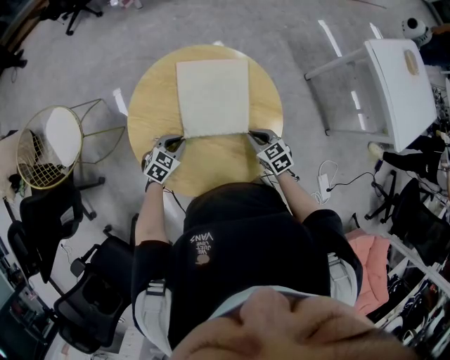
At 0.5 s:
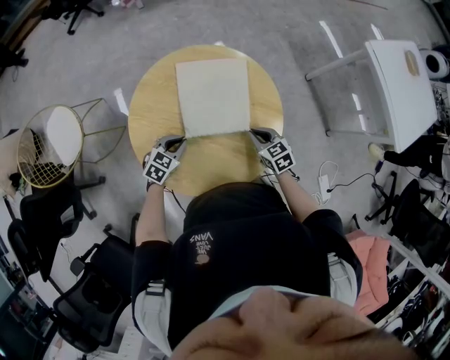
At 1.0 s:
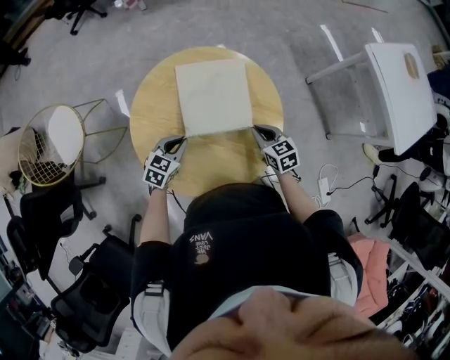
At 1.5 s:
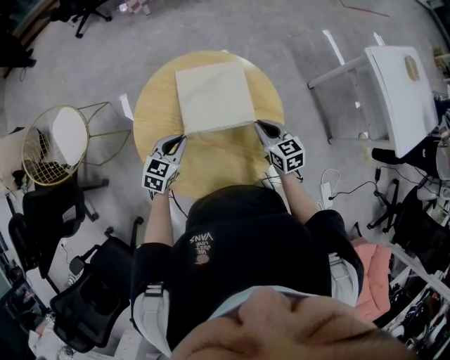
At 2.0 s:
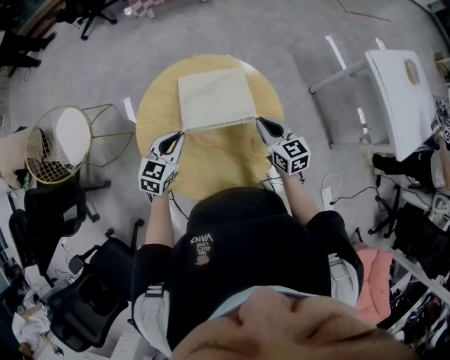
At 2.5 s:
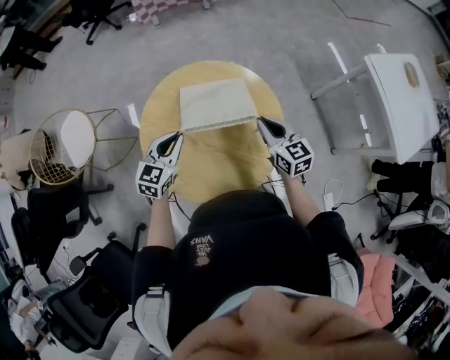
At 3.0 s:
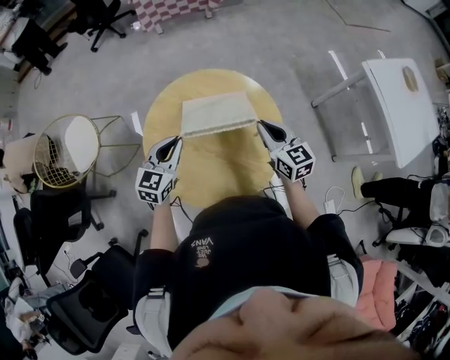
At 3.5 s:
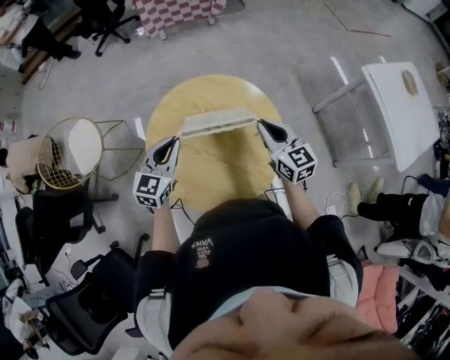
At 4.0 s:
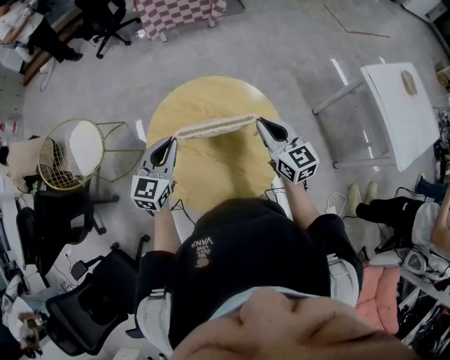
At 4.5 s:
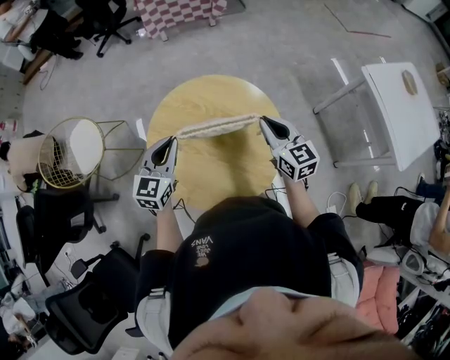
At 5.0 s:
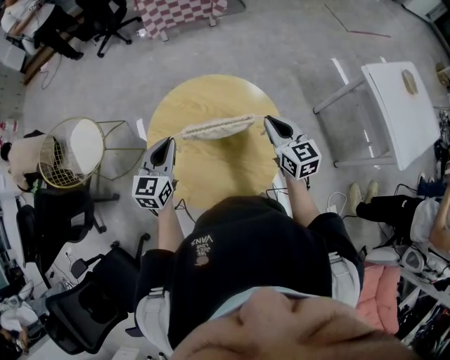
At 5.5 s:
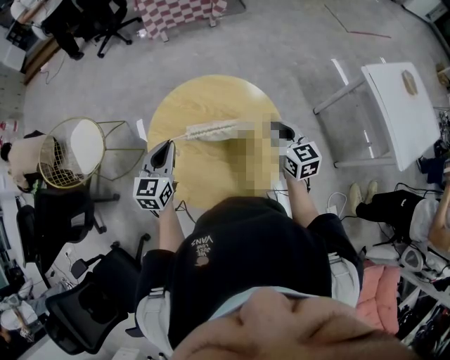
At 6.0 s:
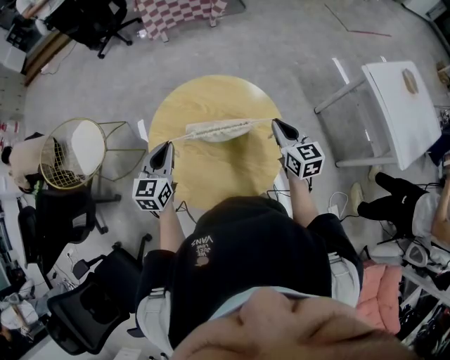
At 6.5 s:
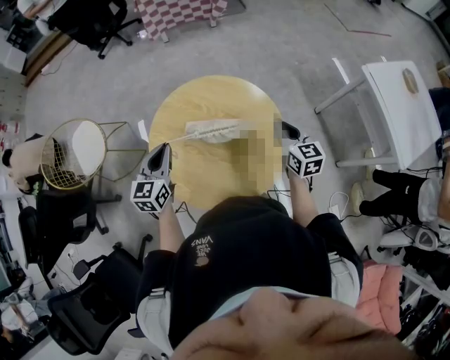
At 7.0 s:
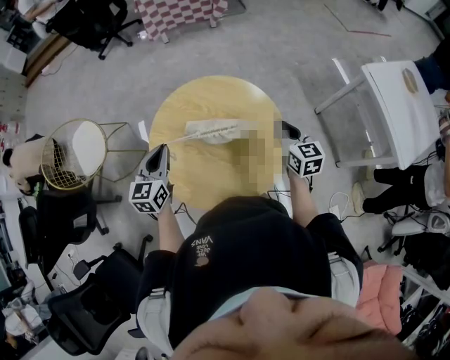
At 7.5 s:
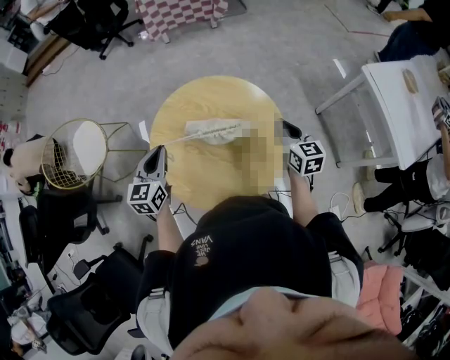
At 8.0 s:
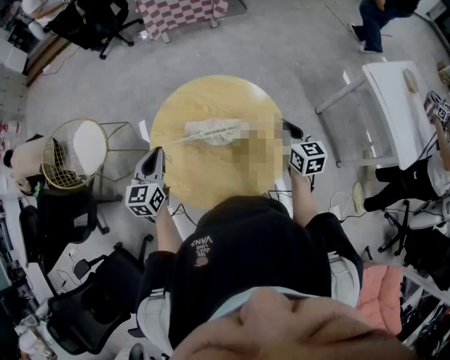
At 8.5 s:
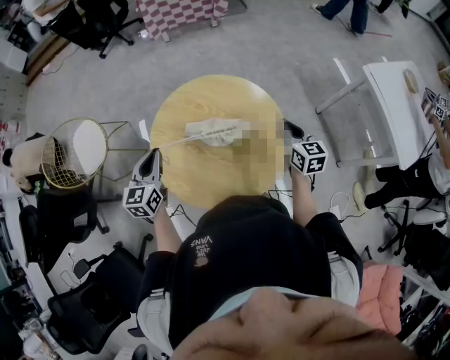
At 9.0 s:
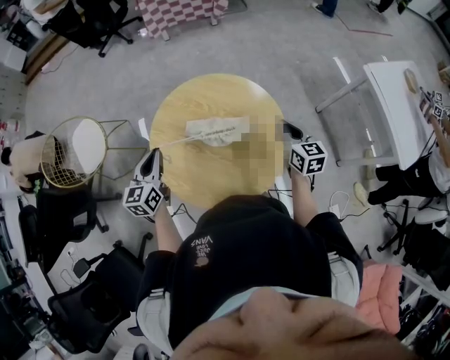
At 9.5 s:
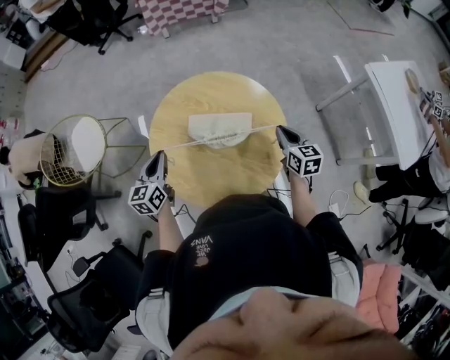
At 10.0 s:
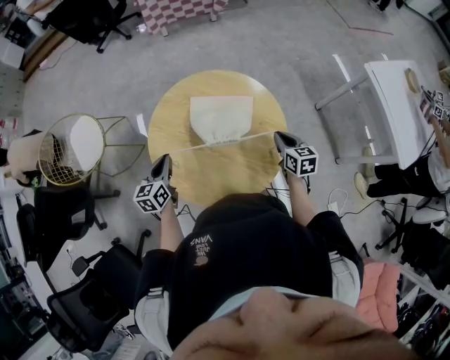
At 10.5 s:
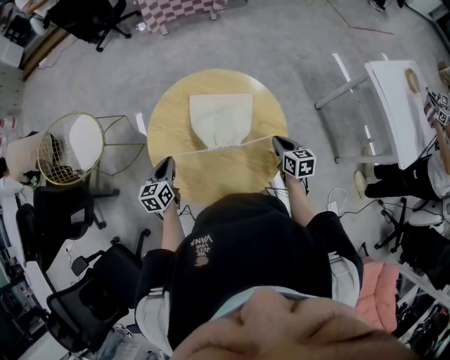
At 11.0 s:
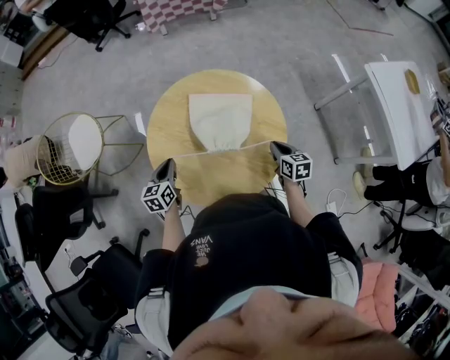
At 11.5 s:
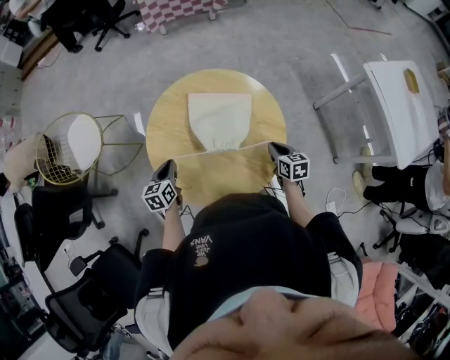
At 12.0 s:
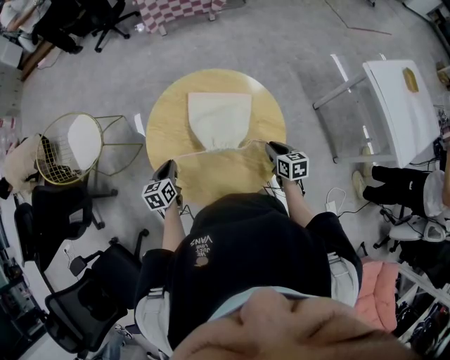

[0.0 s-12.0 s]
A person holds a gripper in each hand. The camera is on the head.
0.0 to 2.0 s: Both grippers move upward, some 15 cm. The right gripper rotates roughly 20 degrees, while the left gripper turns by some 30 degrees.
2.0 to 4.0 s: Both grippers travel together upward, approximately 15 cm.
4.0 to 6.0 s: The right gripper moves to the right, about 5 cm.
6.0 to 8.0 s: The grippers move only a little.
8.0 to 10.0 s: The two grippers go roughly 10 cm downward.
10.0 to 12.0 s: The grippers both shift downward by about 5 cm.

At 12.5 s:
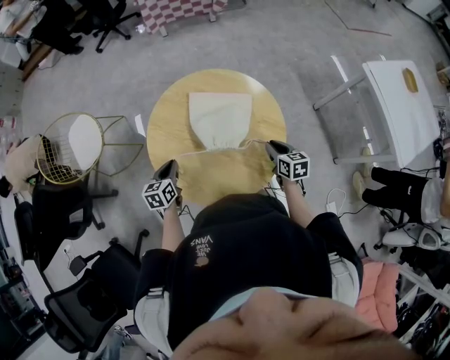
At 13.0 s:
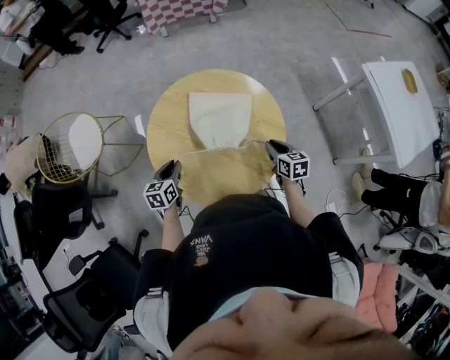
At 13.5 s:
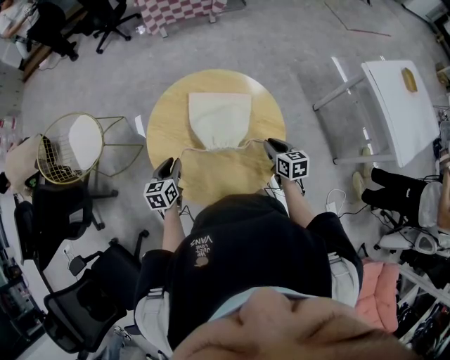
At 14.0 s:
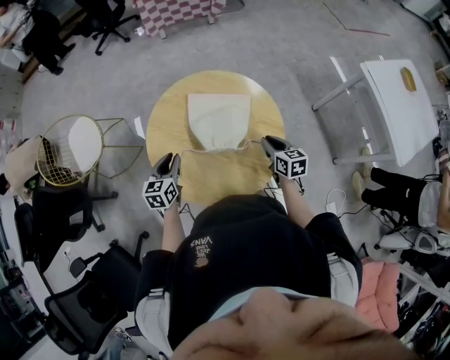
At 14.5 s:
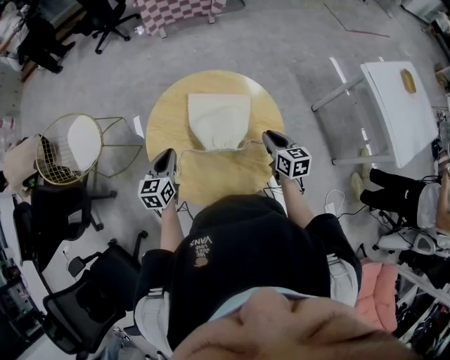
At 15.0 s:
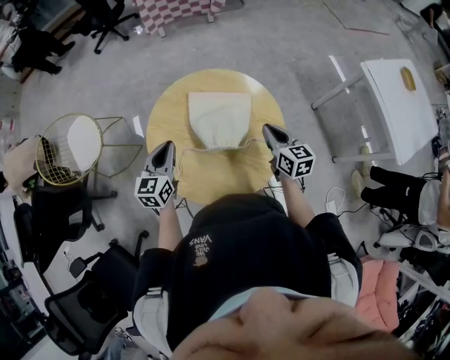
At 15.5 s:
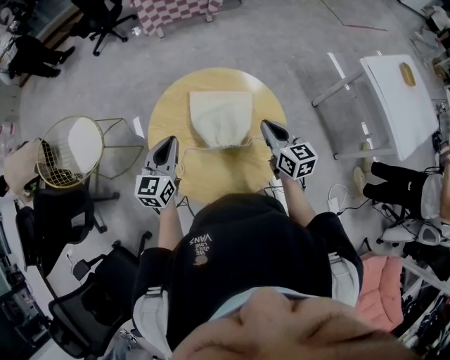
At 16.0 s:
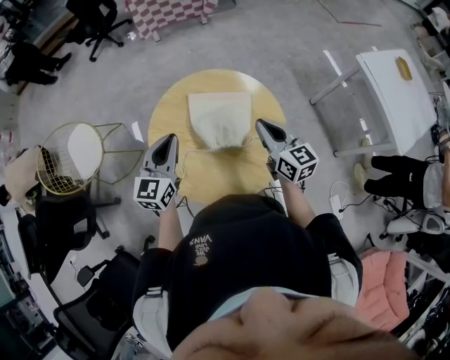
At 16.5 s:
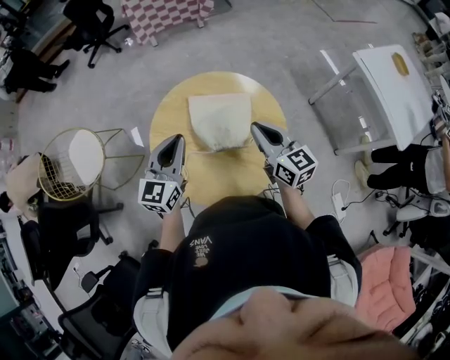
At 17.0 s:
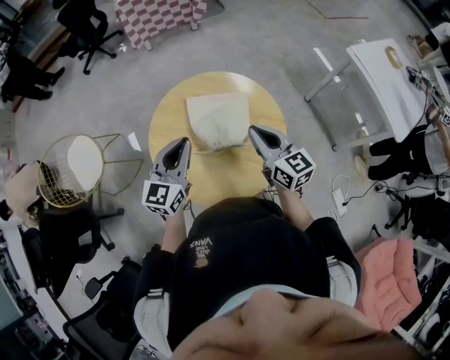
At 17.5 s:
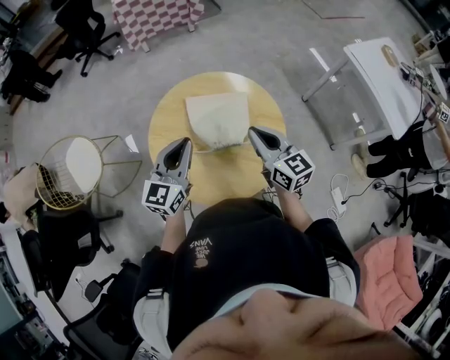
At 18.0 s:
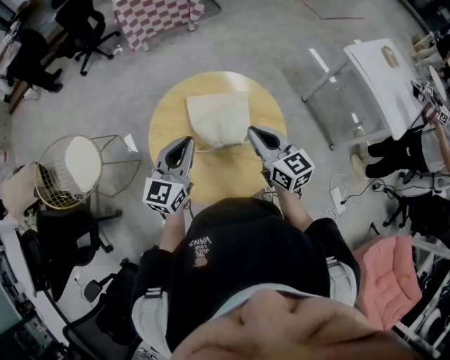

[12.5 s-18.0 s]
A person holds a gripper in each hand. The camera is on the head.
12.5 to 14.5 s: The two grippers go roughly 5 cm upward.
14.5 to 16.0 s: The left gripper moves upward, some 10 cm, and swivels about 20 degrees; the right gripper moves upward and to the left, about 15 cm.
16.0 to 18.0 s: The right gripper changes place by some 5 cm.

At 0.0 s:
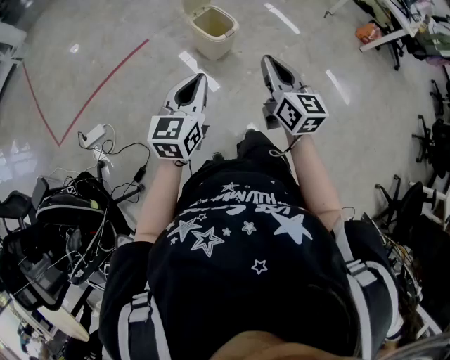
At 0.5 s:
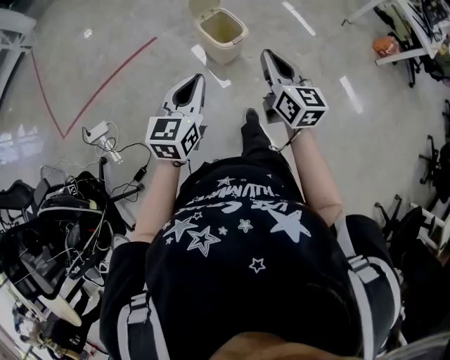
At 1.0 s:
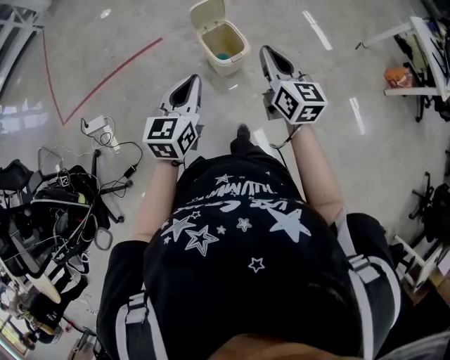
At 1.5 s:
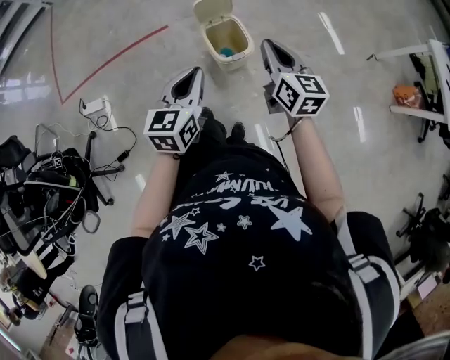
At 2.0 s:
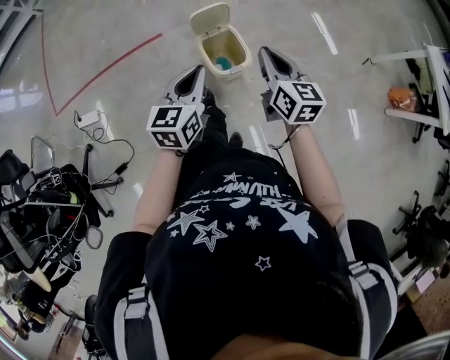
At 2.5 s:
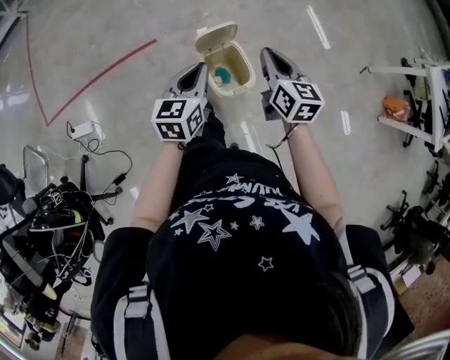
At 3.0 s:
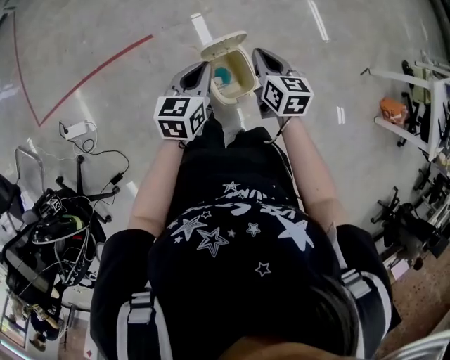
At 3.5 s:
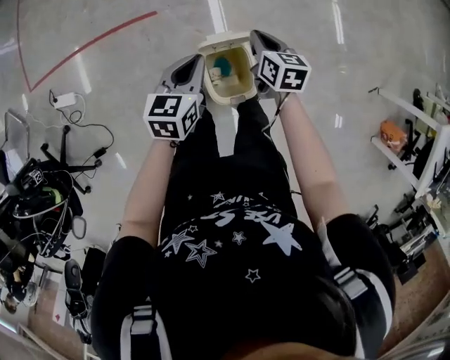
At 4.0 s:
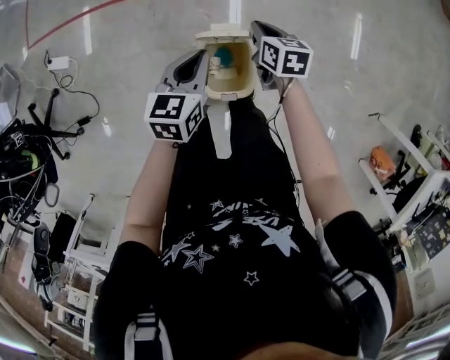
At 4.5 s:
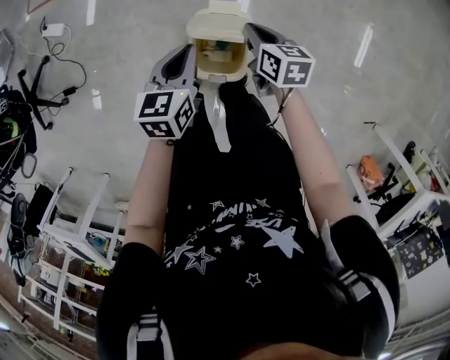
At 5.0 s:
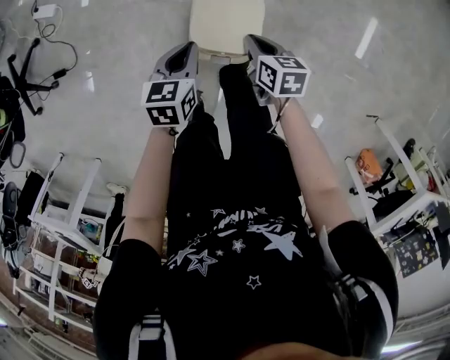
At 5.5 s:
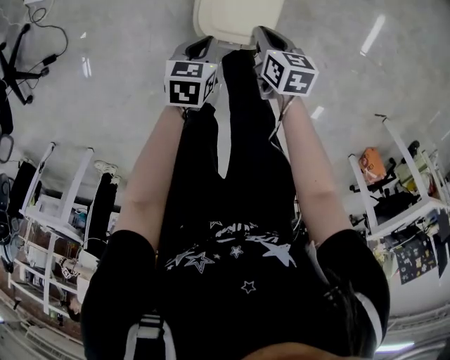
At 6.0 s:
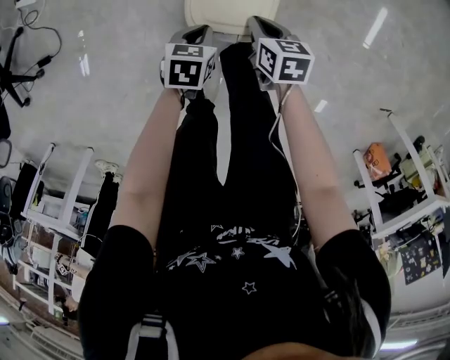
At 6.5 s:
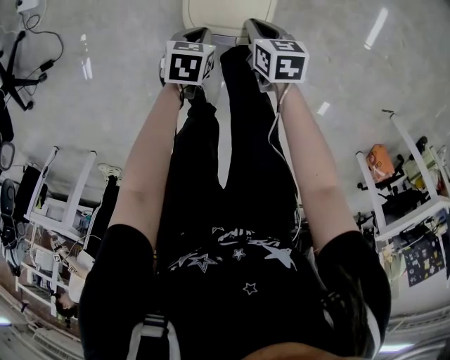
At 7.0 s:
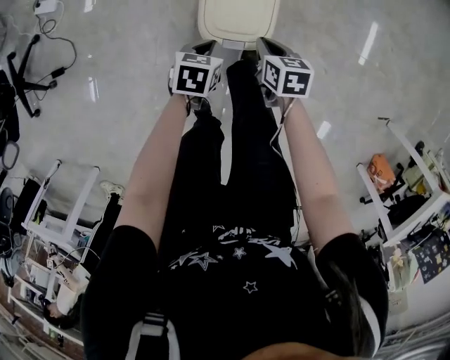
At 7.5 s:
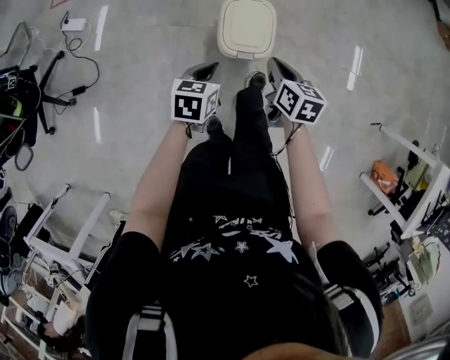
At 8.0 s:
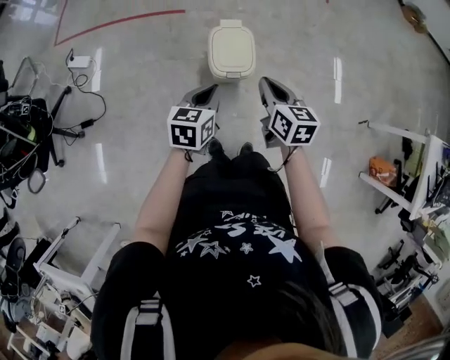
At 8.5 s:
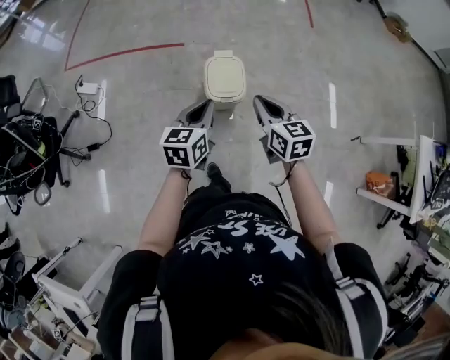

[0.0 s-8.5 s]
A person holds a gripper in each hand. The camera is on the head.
0.0 to 2.0 s: Both grippers travel together forward, about 35 cm. The right gripper turns by roughly 20 degrees; the left gripper turns by roughly 20 degrees.
2.0 to 4.0 s: The left gripper shifts by some 30 cm, and rotates roughly 30 degrees; the right gripper moves roughly 40 cm, and changes its angle by roughly 40 degrees.
4.0 to 6.5 s: The left gripper heads downward and backward, covering some 35 cm, and tilts its fingers about 30 degrees downward; the right gripper moves backward and downward, roughly 30 cm.
6.5 to 8.5 s: The grippers both shift upward by some 50 cm. The right gripper turns by roughly 30 degrees, while the left gripper angles its fingers upward, by some 40 degrees.

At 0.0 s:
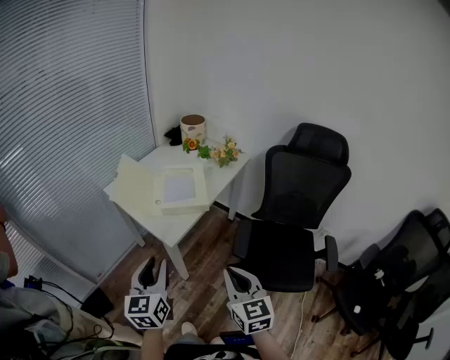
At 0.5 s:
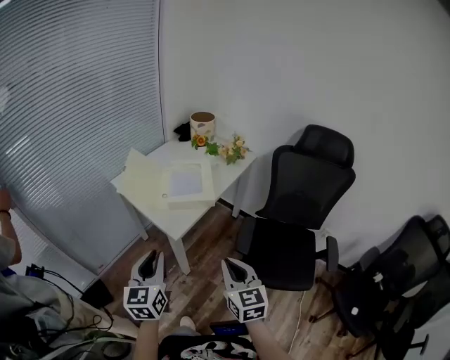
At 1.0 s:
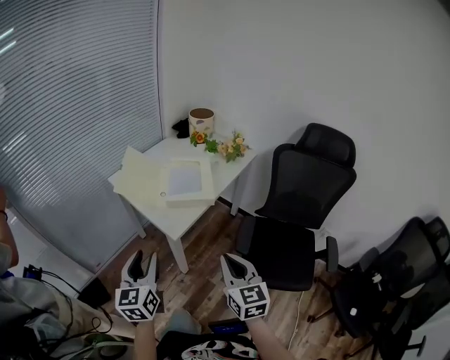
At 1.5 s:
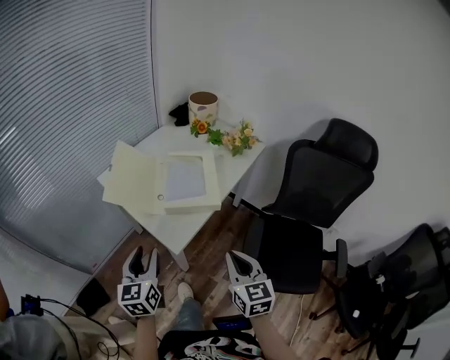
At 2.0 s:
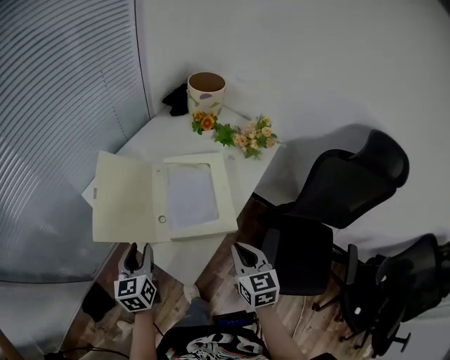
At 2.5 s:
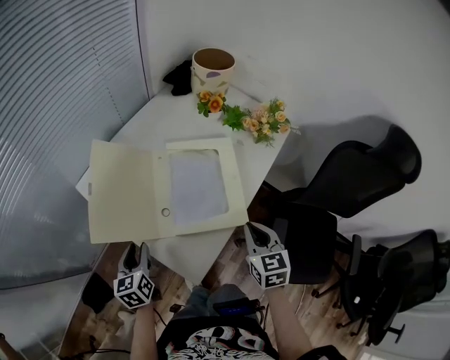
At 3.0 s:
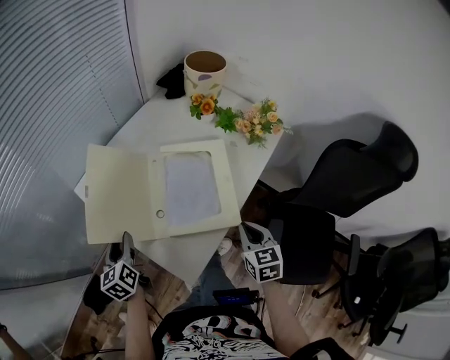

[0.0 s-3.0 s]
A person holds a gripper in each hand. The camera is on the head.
0.0 to 1.5 s: The left gripper travels forward and downward by roughly 15 cm. The right gripper travels forward by some 15 cm.
1.5 to 3.0 s: The left gripper heads forward, downward and to the left, covering some 30 cm, and turns by some 20 degrees. Meanwhile the right gripper travels forward and downward by some 25 cm.
